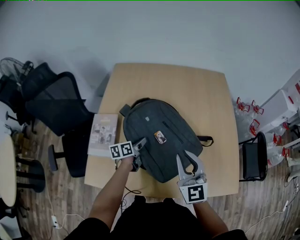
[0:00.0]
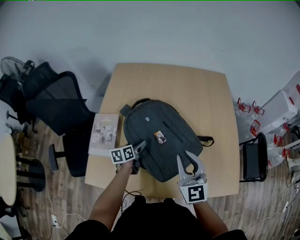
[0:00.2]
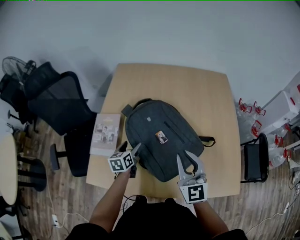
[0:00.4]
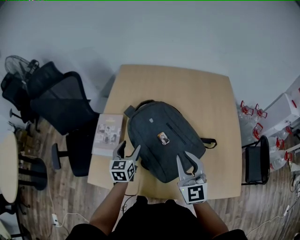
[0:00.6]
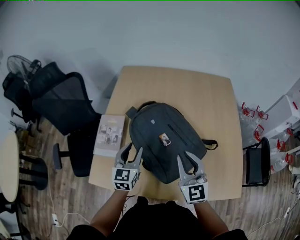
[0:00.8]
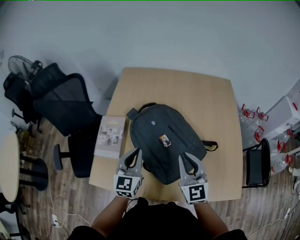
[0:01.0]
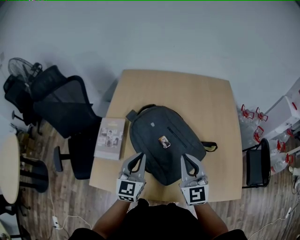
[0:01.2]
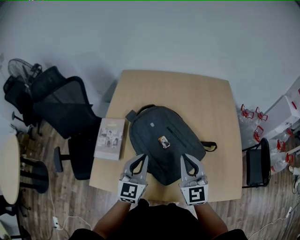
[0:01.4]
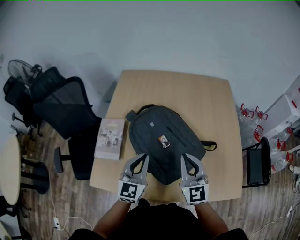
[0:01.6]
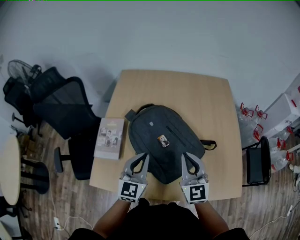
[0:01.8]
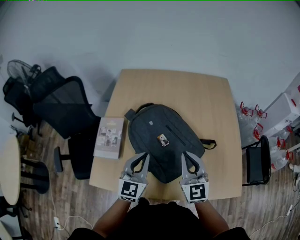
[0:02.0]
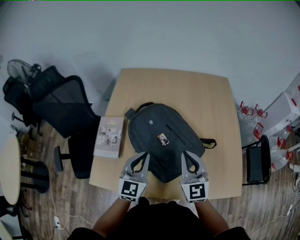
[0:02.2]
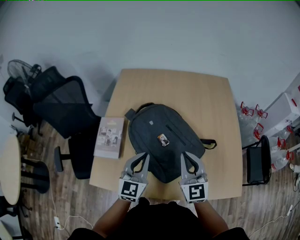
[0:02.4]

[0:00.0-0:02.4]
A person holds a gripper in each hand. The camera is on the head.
0.0 to 1.2 s: The left gripper goes about 20 cm upward and backward, twists some 50 degrees clockwise, seen from behind, and closes up.
1.2 to 2.4 s: The grippers stay close to where they were, moving slightly.

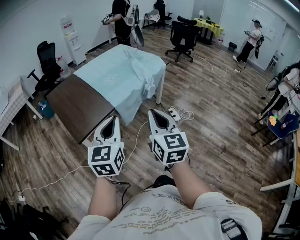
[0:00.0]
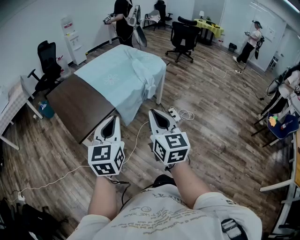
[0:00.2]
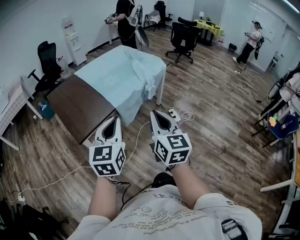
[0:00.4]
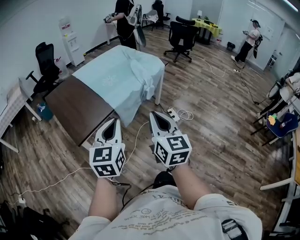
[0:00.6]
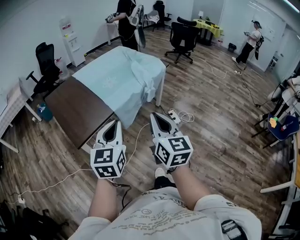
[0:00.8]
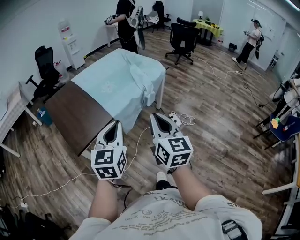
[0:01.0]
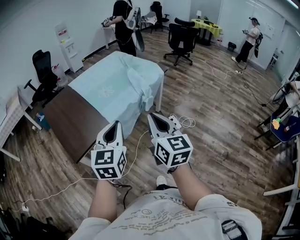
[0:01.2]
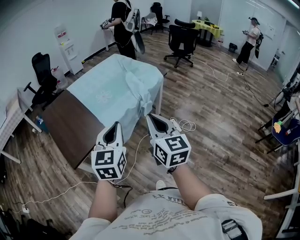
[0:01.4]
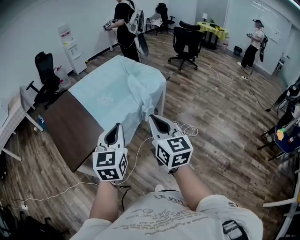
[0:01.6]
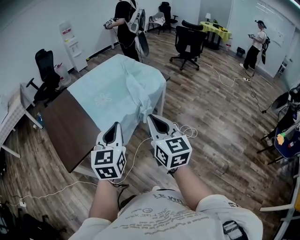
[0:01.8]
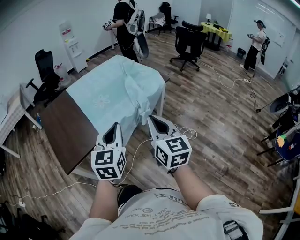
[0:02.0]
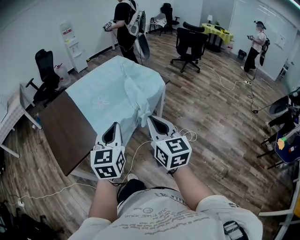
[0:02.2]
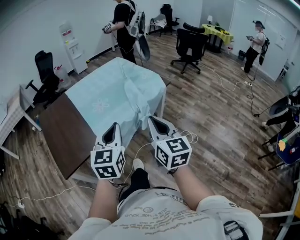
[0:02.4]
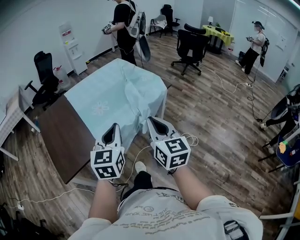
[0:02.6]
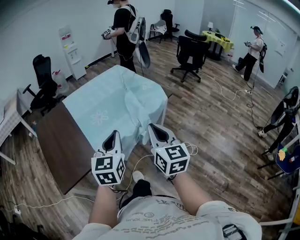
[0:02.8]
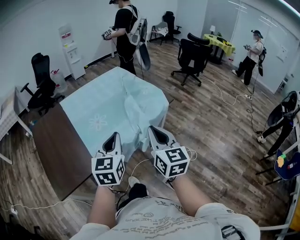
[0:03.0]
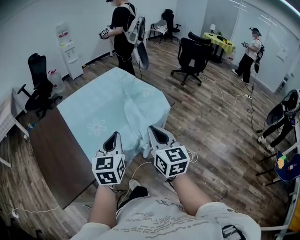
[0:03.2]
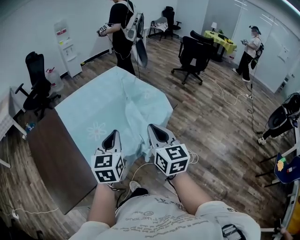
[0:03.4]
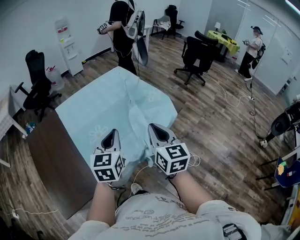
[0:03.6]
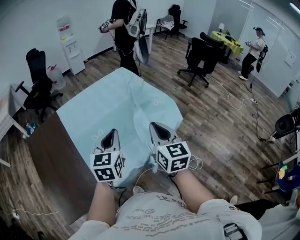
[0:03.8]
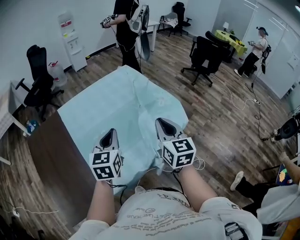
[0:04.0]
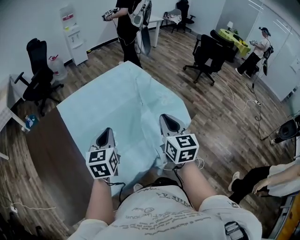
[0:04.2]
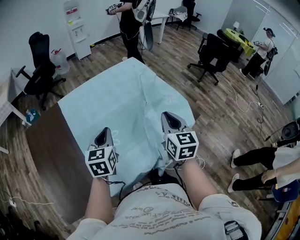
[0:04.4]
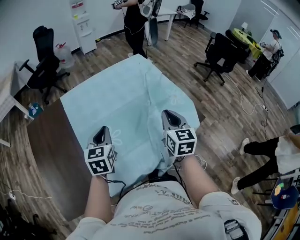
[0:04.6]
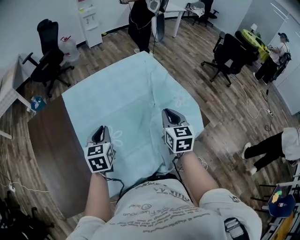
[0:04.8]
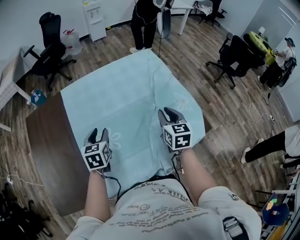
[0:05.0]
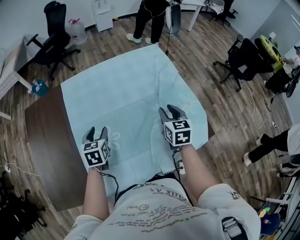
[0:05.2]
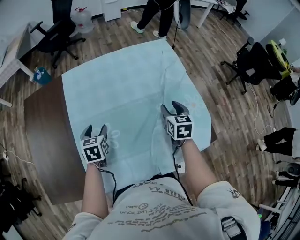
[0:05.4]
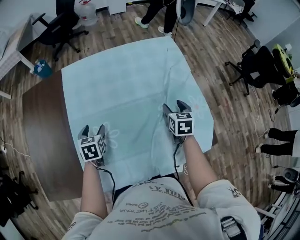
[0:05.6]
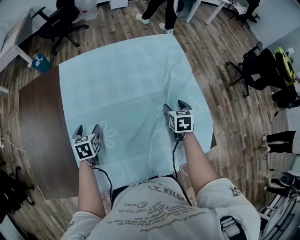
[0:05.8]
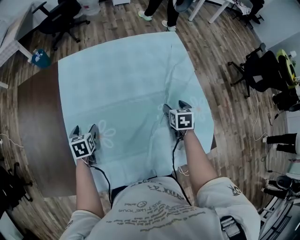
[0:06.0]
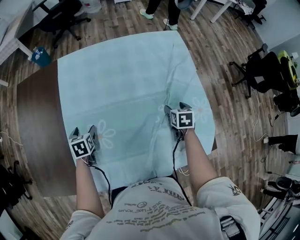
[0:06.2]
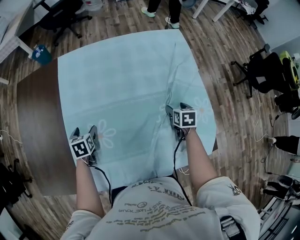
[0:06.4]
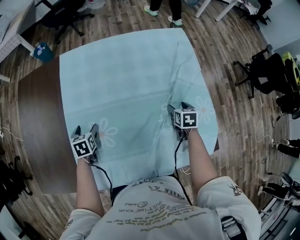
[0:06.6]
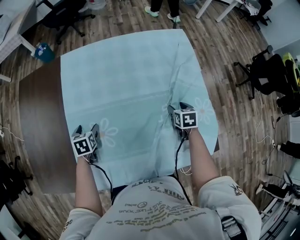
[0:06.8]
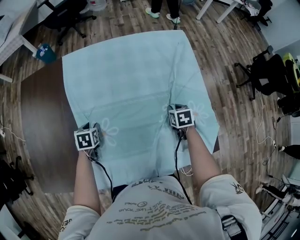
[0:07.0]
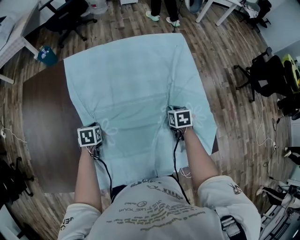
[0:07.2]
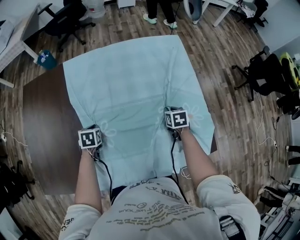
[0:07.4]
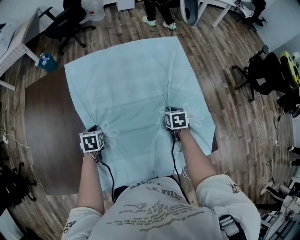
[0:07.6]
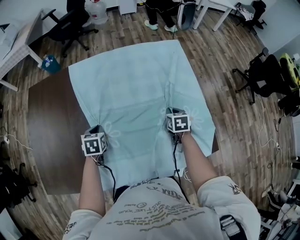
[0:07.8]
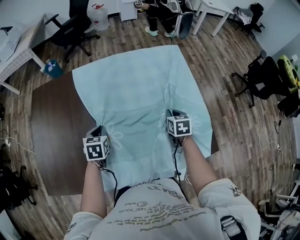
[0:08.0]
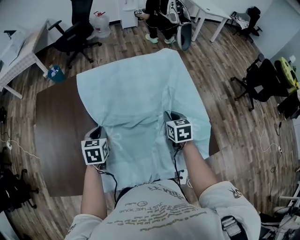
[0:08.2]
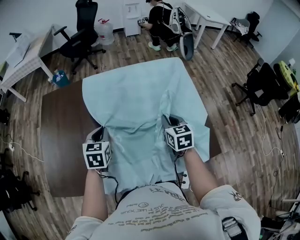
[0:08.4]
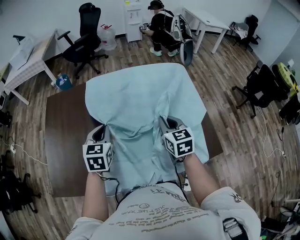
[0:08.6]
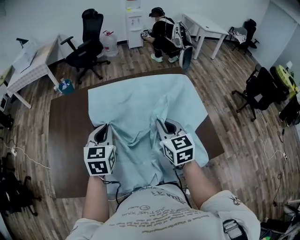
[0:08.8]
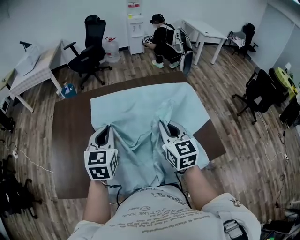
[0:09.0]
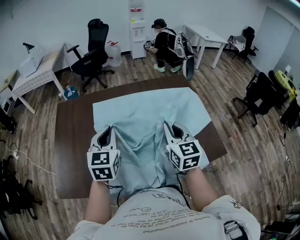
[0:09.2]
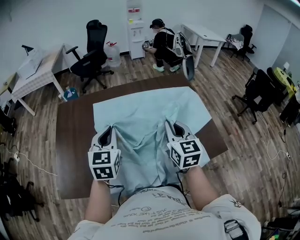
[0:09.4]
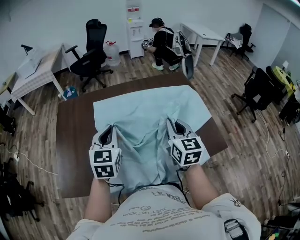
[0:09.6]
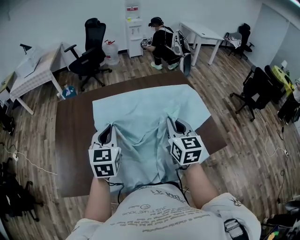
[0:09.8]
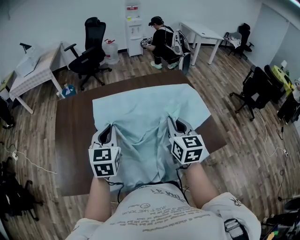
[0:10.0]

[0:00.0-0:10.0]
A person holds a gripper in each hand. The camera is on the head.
0.0 to 1.4 s: Both grippers travel together forward and to the right, about 15 cm.
1.4 to 2.8 s: The grippers both shift forward by roughly 20 cm.
2.8 to 4.2 s: Both grippers move forward, some 35 cm.
4.2 to 5.8 s: The left gripper shifts some 30 cm downward, forward and to the left, angles its fingers downward, by about 30 degrees, and opens; the right gripper heads forward and downward, covering approximately 40 cm, tips its fingers downward by about 40 degrees, and opens its fingers.
5.8 to 7.2 s: Both grippers travel together downward, approximately 5 cm. The left gripper closes up. The right gripper closes.
7.2 to 8.6 s: The right gripper shifts some 30 cm upward and to the left, and tips its fingers upward by roughly 30 degrees, while the left gripper shifts roughly 25 cm upward, and tips its fingers upward by some 30 degrees.
8.6 to 10.0 s: Both grippers move backward and upward, some 10 cm.

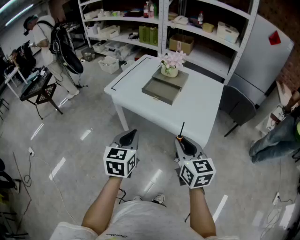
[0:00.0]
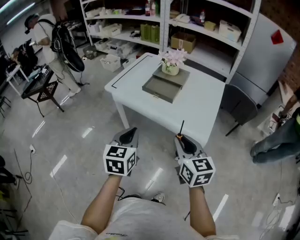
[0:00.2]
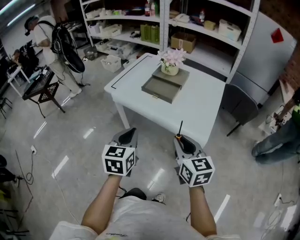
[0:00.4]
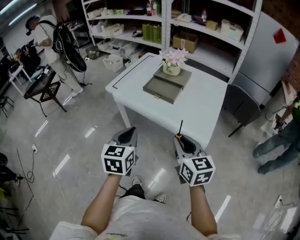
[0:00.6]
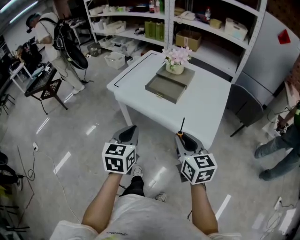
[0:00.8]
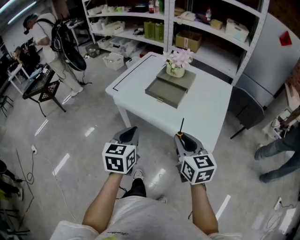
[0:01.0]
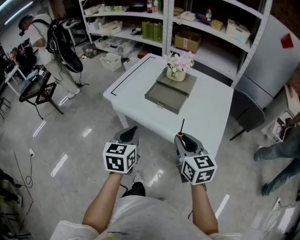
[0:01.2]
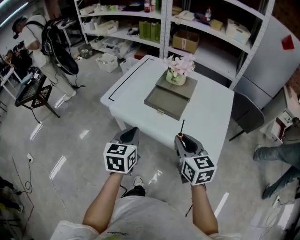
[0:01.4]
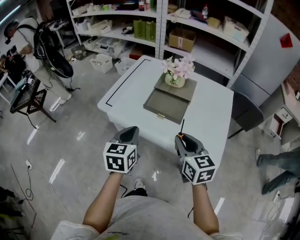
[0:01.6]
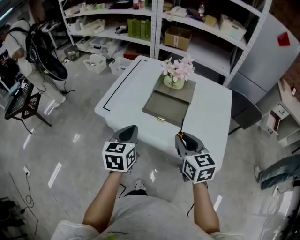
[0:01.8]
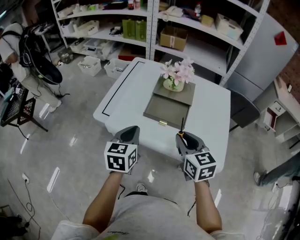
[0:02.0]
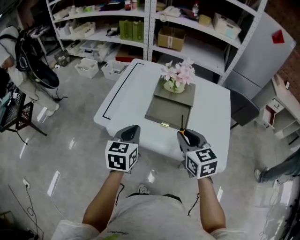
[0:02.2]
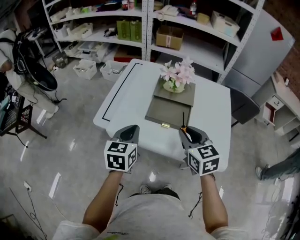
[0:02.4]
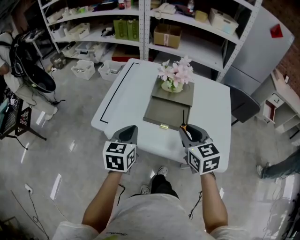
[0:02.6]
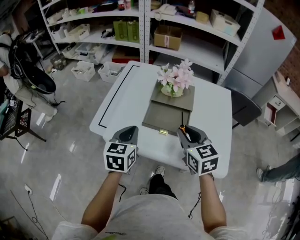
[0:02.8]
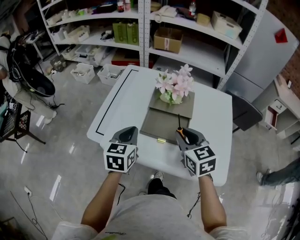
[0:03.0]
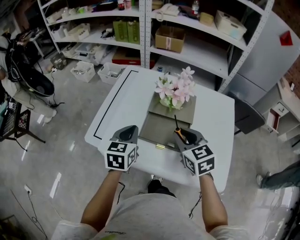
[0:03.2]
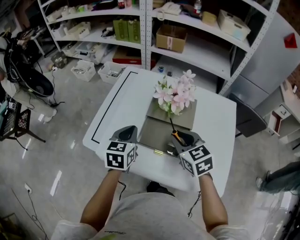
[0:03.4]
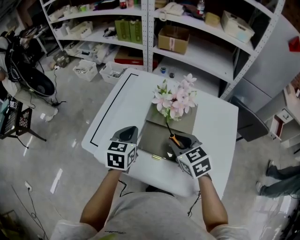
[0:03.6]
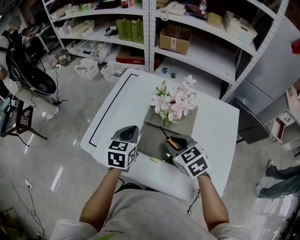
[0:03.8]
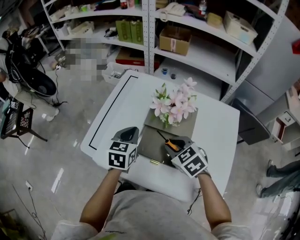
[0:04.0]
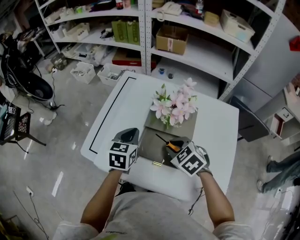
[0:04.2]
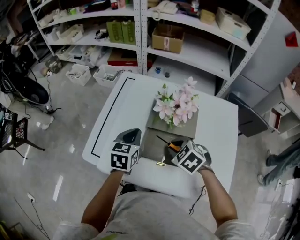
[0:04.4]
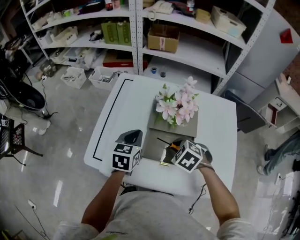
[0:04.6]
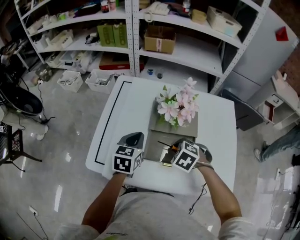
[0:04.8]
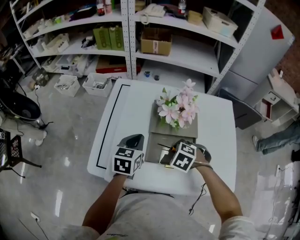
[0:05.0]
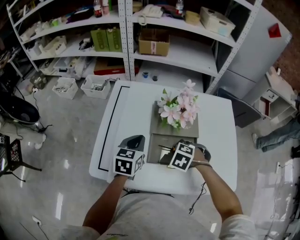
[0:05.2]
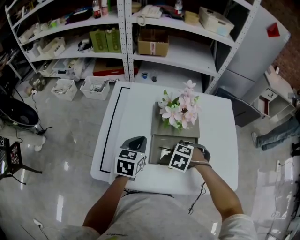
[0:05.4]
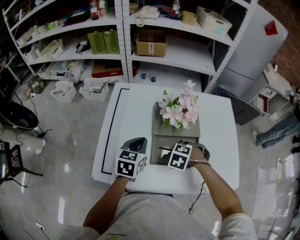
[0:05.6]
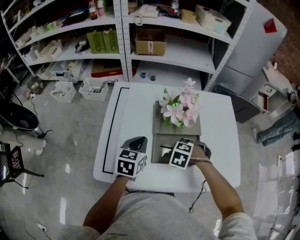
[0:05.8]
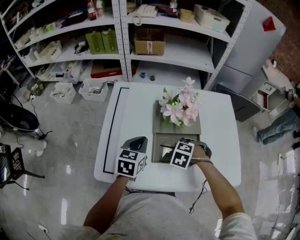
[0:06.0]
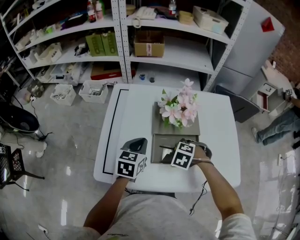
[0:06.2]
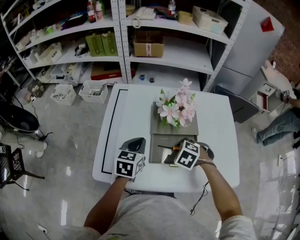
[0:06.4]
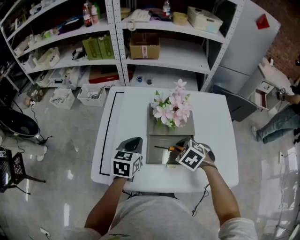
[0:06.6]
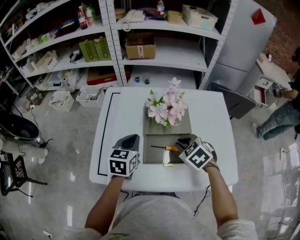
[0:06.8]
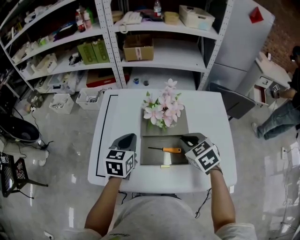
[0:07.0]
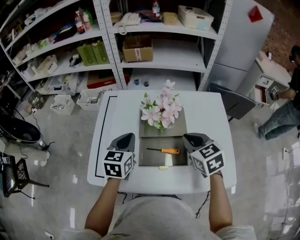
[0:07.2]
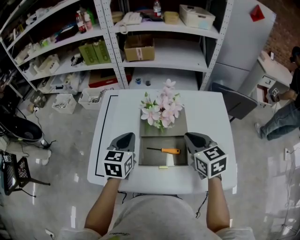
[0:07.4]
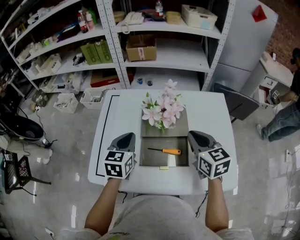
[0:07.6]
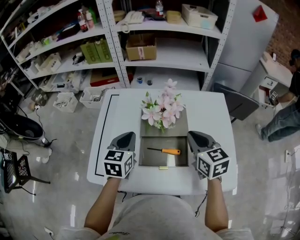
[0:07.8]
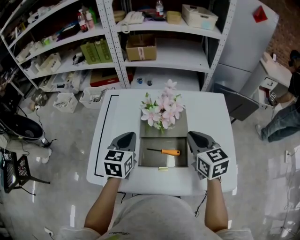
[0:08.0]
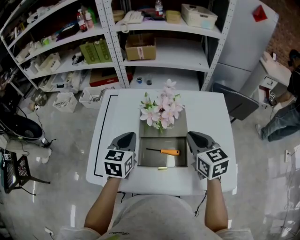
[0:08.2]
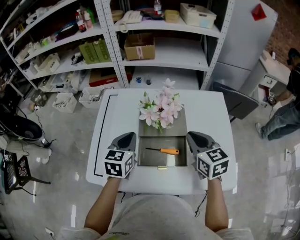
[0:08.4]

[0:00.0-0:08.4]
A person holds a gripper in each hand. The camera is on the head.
0.0 to 1.4 s: The grippers both shift forward by roughly 15 cm.
1.4 to 2.8 s: The two grippers go roughly 15 cm forward.
2.8 to 4.2 s: The left gripper shifts approximately 15 cm forward. Meanwhile the right gripper is displaced forward and downward by approximately 15 cm, and swivels roughly 40 degrees.
4.2 to 5.6 s: The right gripper shifts roughly 10 cm downward, and changes its angle by roughly 40 degrees.
5.6 to 7.0 s: The right gripper shifts some 15 cm upward, and angles its fingers upward, by some 40 degrees.
7.0 to 8.4 s: The right gripper changes place by about 5 cm, and changes its angle by approximately 30 degrees.

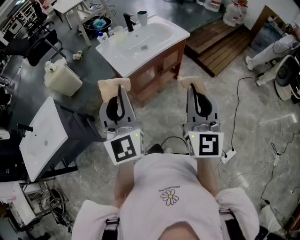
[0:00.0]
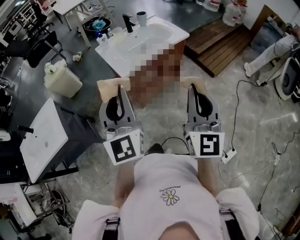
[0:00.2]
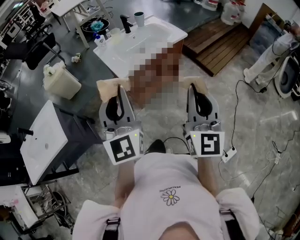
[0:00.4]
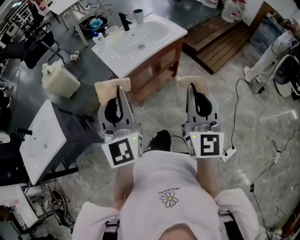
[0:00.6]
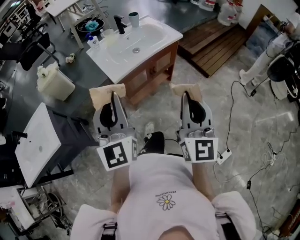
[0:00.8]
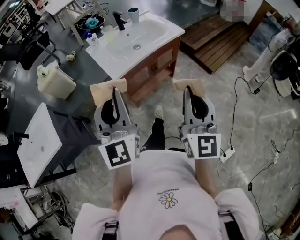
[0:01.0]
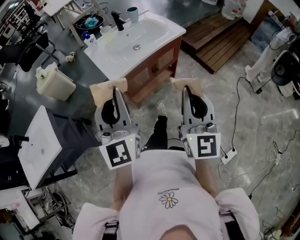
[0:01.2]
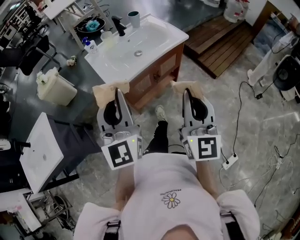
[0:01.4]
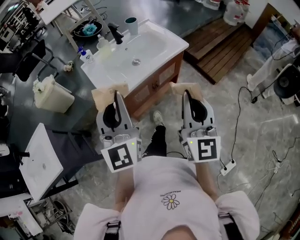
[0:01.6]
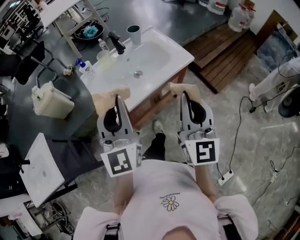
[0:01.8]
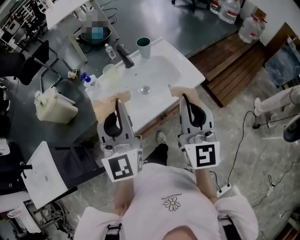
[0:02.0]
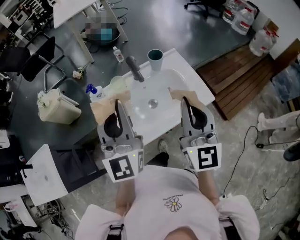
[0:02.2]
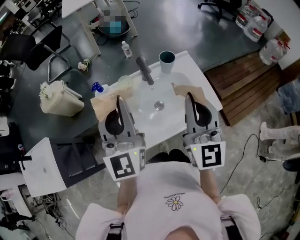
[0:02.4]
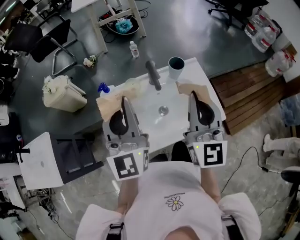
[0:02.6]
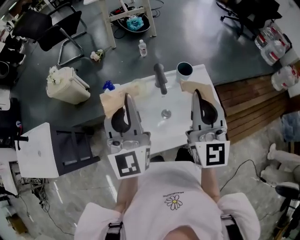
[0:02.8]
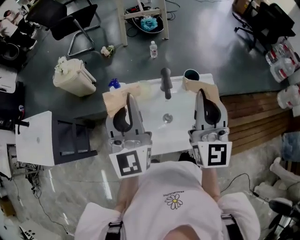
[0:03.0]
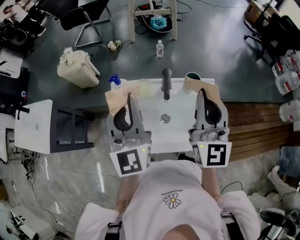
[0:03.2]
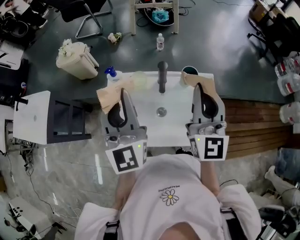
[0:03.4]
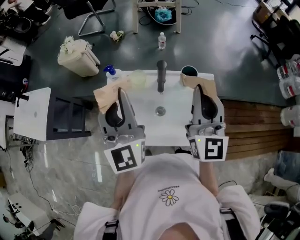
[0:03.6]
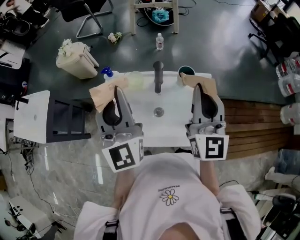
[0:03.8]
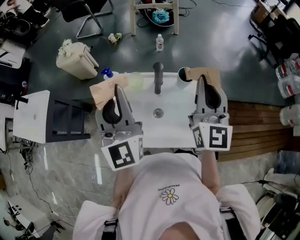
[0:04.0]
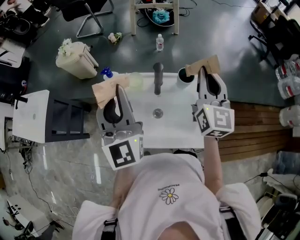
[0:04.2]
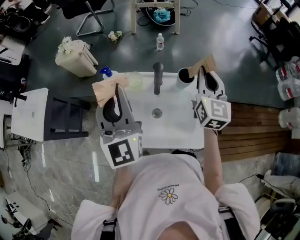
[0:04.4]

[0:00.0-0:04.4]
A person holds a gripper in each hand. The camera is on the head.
0.0 to 1.4 s: The right gripper travels forward and downward by some 15 cm. Meanwhile the left gripper is displaced forward by some 10 cm.
1.4 to 3.0 s: Both grippers are carried approximately 50 cm. The right gripper rotates approximately 30 degrees. The left gripper changes its angle by roughly 30 degrees.
3.0 to 4.4 s: The right gripper moves forward, to the right and downward, some 15 cm.
